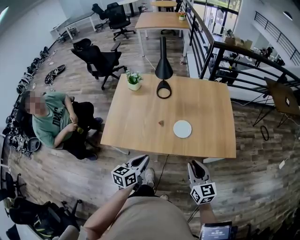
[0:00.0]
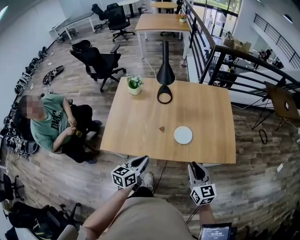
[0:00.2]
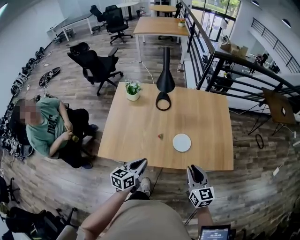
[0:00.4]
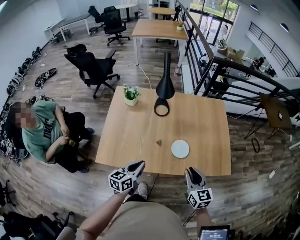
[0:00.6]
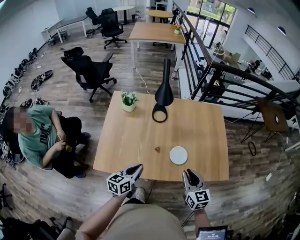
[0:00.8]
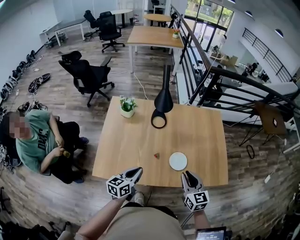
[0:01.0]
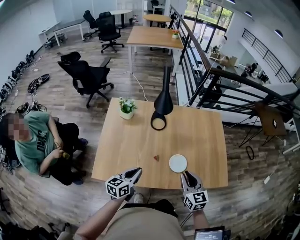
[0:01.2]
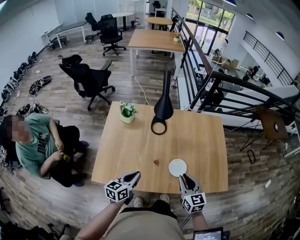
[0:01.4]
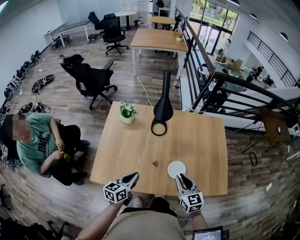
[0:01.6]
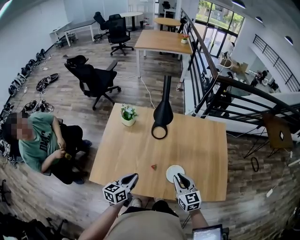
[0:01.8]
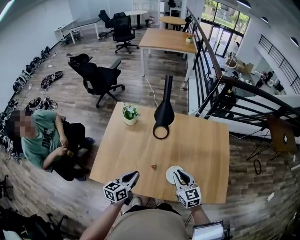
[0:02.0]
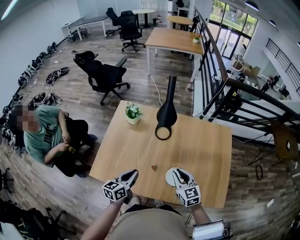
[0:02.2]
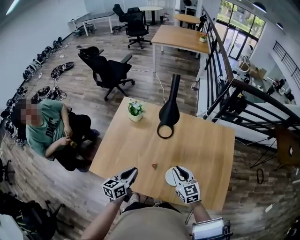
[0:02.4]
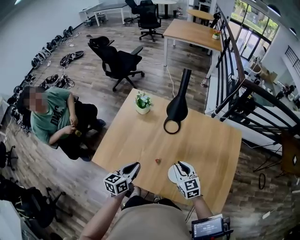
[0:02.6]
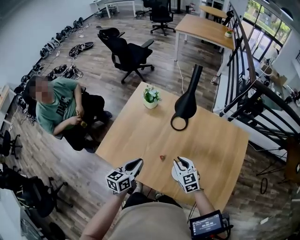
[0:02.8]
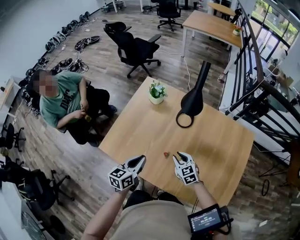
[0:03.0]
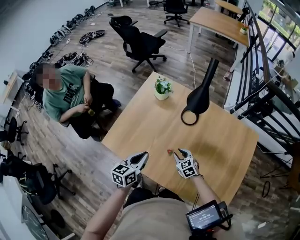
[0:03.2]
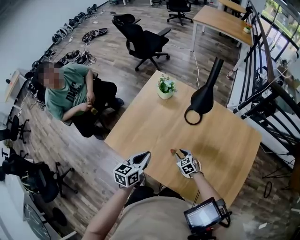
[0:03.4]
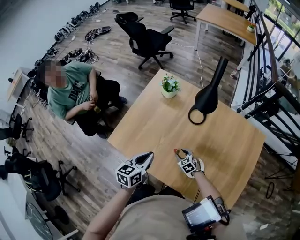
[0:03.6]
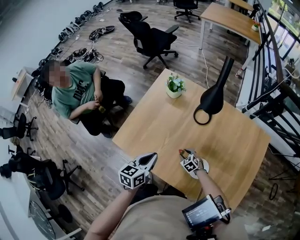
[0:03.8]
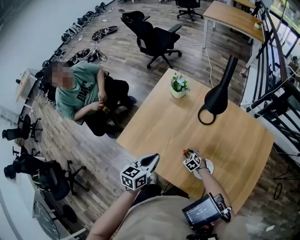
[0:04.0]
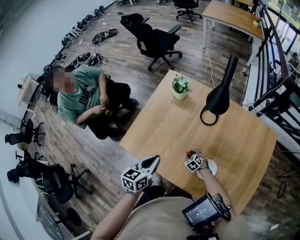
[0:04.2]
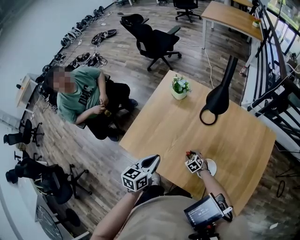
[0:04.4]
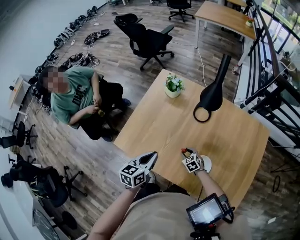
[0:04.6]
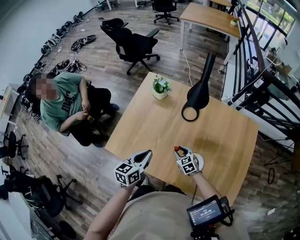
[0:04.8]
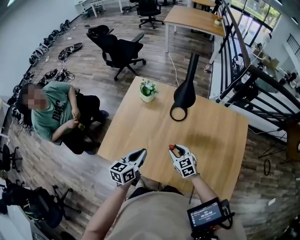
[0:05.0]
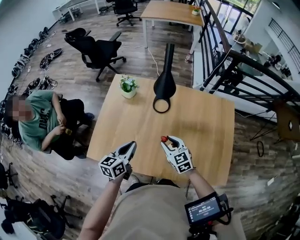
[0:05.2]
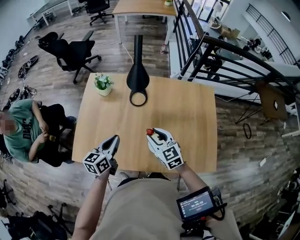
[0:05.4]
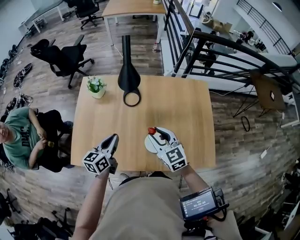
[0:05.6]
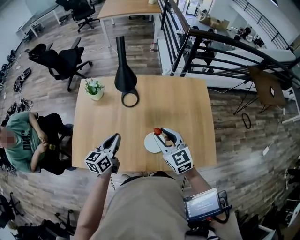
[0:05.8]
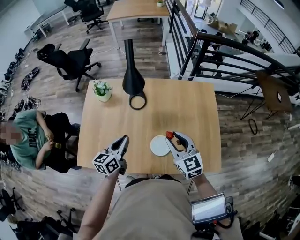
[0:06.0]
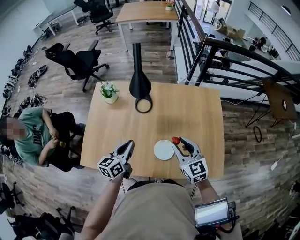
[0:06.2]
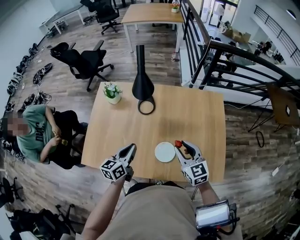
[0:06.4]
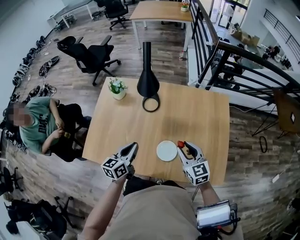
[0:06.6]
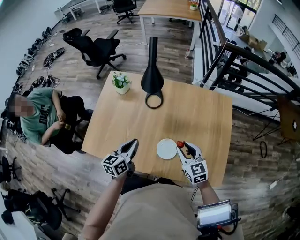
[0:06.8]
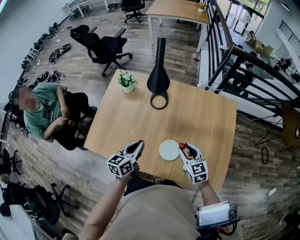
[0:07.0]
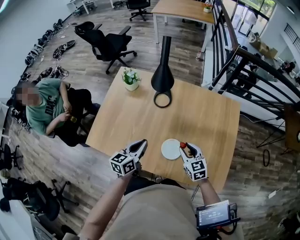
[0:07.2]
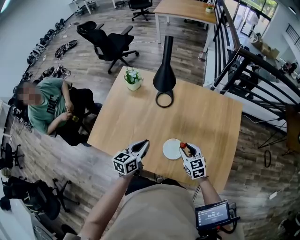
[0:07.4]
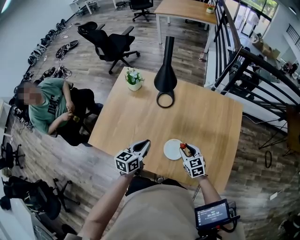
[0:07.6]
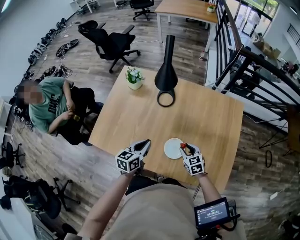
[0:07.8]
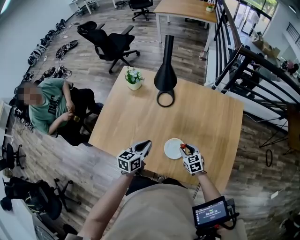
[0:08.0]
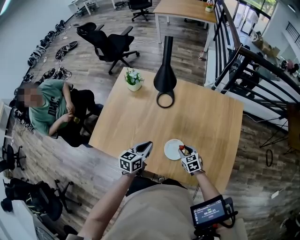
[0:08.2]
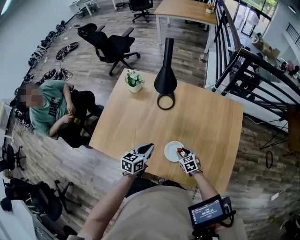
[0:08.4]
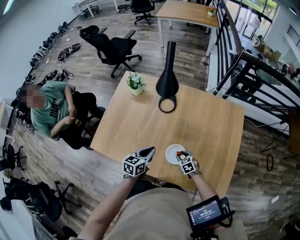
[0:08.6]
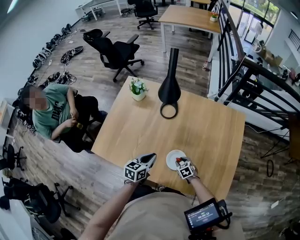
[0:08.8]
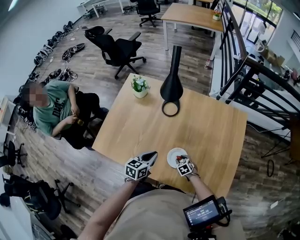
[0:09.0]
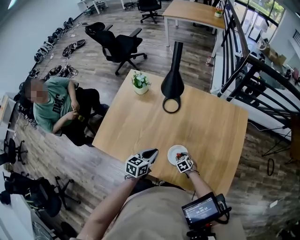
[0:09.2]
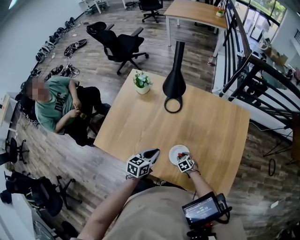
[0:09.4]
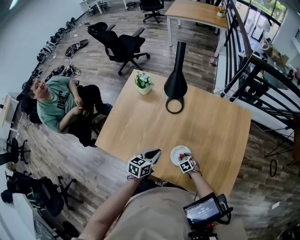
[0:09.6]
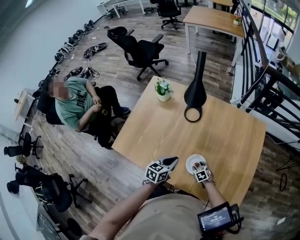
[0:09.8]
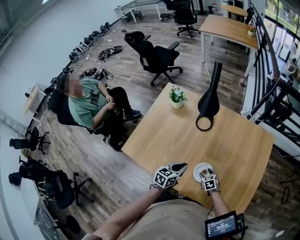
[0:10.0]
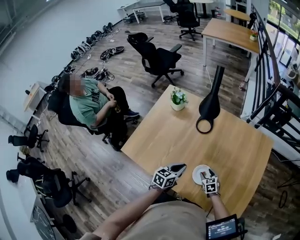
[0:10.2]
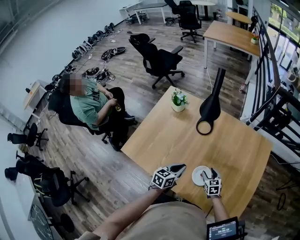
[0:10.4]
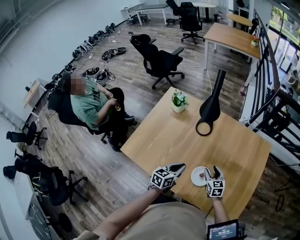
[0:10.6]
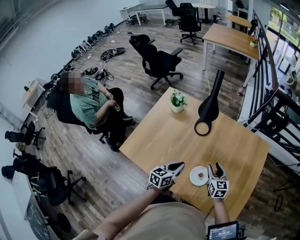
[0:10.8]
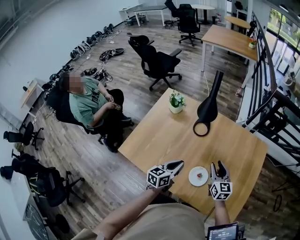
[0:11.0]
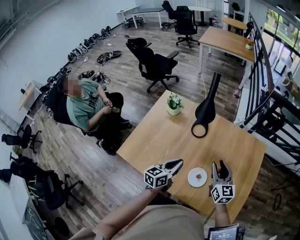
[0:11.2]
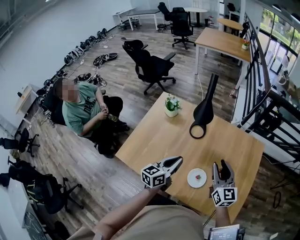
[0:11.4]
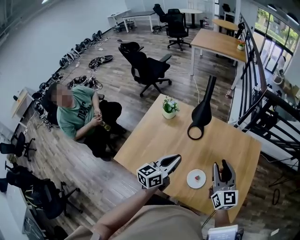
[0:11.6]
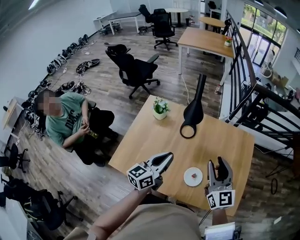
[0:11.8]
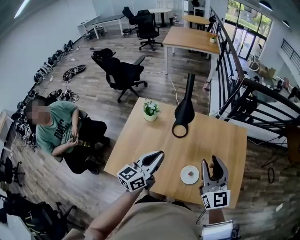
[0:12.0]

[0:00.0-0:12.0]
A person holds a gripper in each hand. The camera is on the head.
0:00.0 to 0:01.6: Both grippers move forward and to the left, about 25 cm.
0:01.6 to 0:03.0: The left gripper changes its angle by about 20 degrees. Meanwhile the right gripper goes roughly 15 cm downward, and swivels roughly 40 degrees.
0:03.0 to 0:04.4: The right gripper moves downward, roughly 20 cm, and rotates roughly 30 degrees.
0:04.4 to 0:06.0: The left gripper shifts by some 15 cm, and rotates roughly 20 degrees; the right gripper shifts about 40 cm upward, and points its fingers approximately 40 degrees further upward.
0:06.0 to 0:07.6: The right gripper is displaced downward by approximately 20 cm, and swivels some 20 degrees. The left gripper shifts about 5 cm downward.
0:07.6 to 0:09.0: The left gripper ends up approximately 5 cm from where it was. Meanwhile the right gripper heads downward, covering some 20 cm, and rotates approximately 30 degrees.
0:09.0 to 0:10.4: The right gripper moves upward, approximately 10 cm, turns by approximately 20 degrees, and opens up.
0:10.4 to 0:12.0: The right gripper travels upward by approximately 40 cm, and angles its fingers upward, by some 50 degrees, while the left gripper moves upward, some 25 cm, and turns by about 30 degrees.

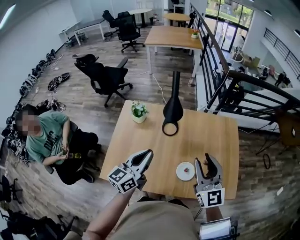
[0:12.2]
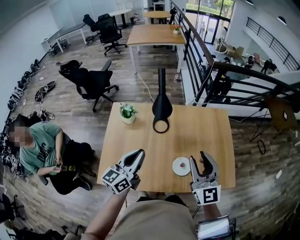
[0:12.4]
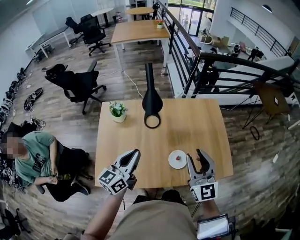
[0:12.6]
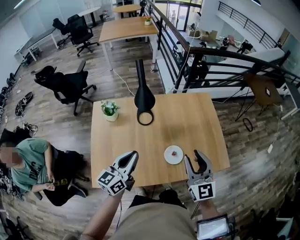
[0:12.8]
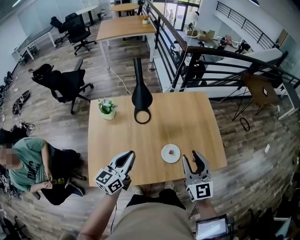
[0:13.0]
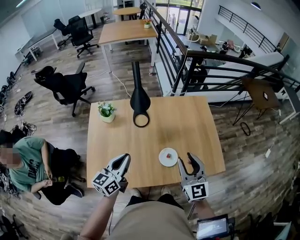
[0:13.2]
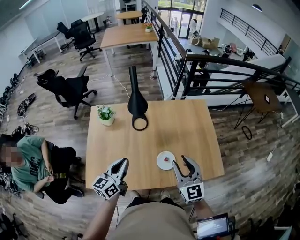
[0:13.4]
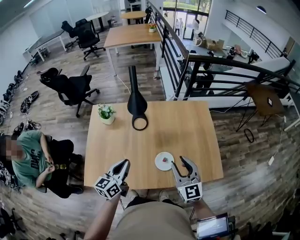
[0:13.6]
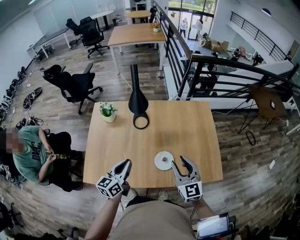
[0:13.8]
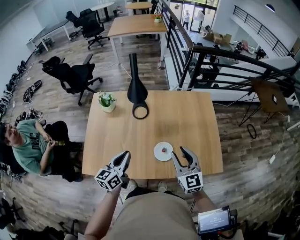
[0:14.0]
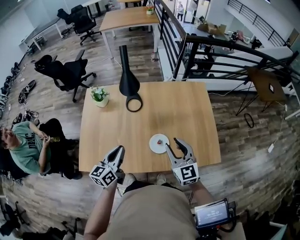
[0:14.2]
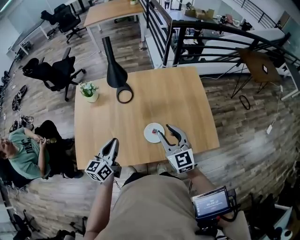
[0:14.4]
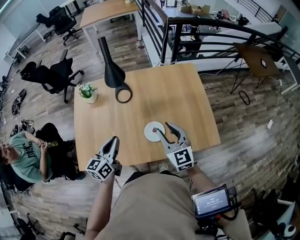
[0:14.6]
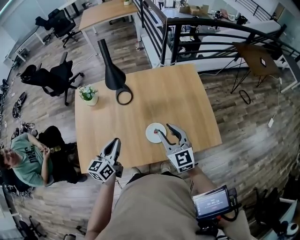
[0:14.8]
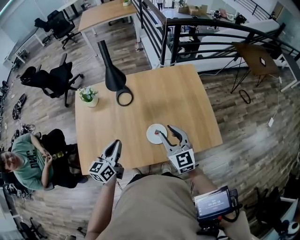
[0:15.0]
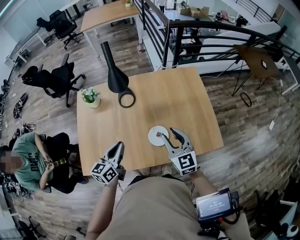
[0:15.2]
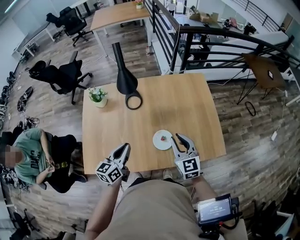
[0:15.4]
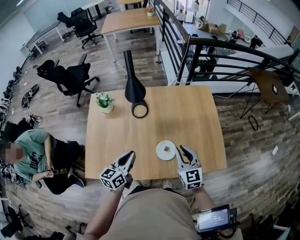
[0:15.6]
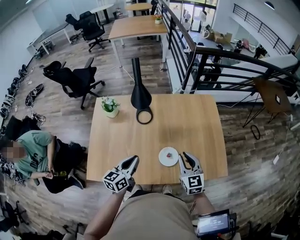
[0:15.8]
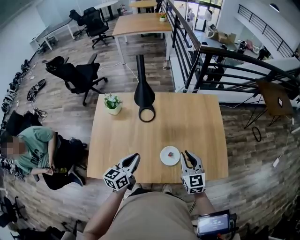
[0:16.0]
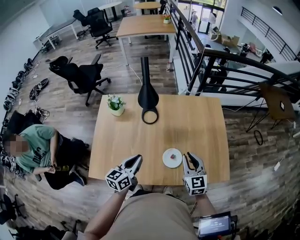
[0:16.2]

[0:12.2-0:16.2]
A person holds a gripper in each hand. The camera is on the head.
0:12.2 to 0:13.6: The left gripper moves downward, approximately 10 cm. The right gripper heads downward and to the right, covering some 10 cm.
0:13.6 to 0:14.8: The right gripper travels downward by approximately 5 cm.
0:14.8 to 0:16.2: The right gripper closes up.

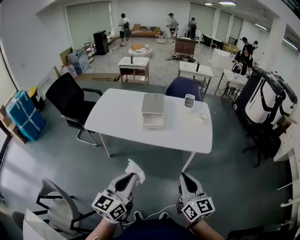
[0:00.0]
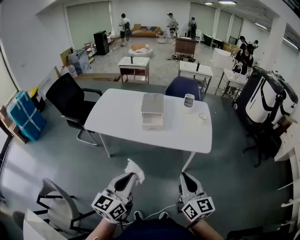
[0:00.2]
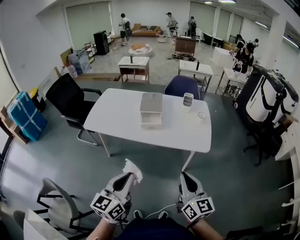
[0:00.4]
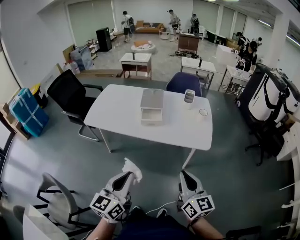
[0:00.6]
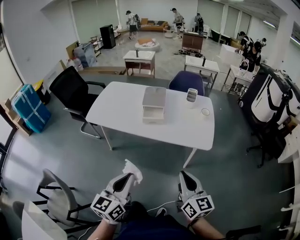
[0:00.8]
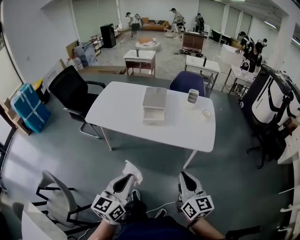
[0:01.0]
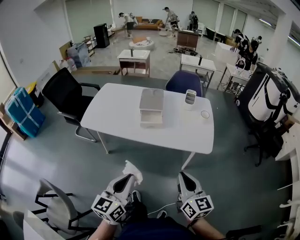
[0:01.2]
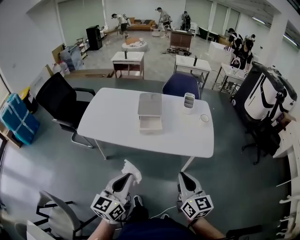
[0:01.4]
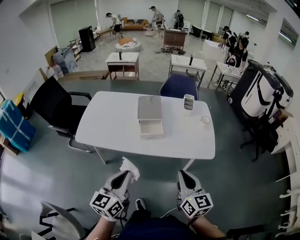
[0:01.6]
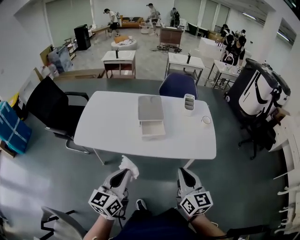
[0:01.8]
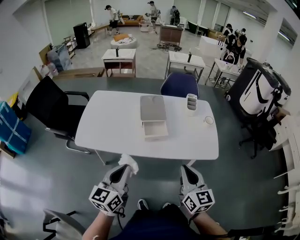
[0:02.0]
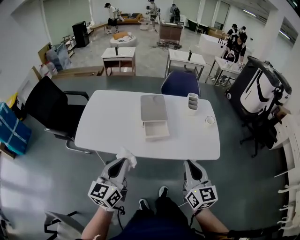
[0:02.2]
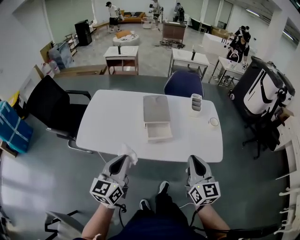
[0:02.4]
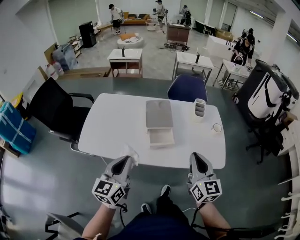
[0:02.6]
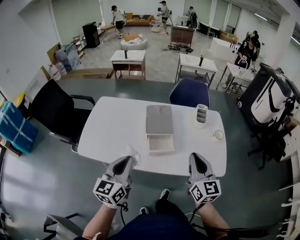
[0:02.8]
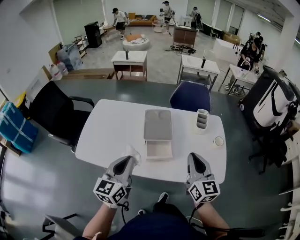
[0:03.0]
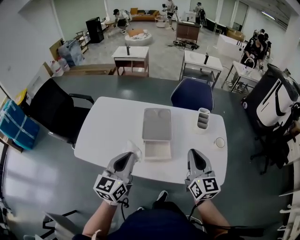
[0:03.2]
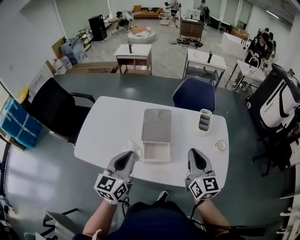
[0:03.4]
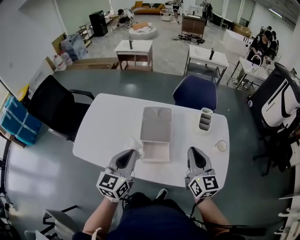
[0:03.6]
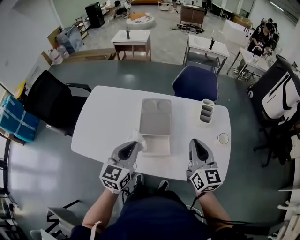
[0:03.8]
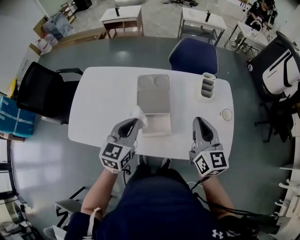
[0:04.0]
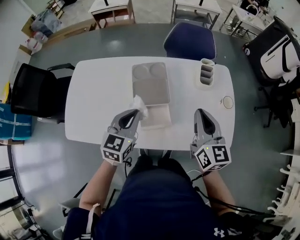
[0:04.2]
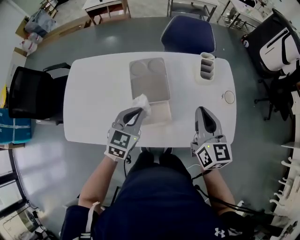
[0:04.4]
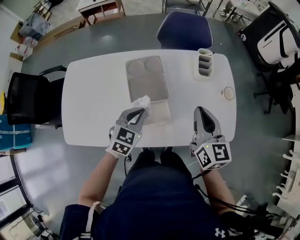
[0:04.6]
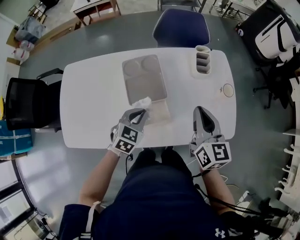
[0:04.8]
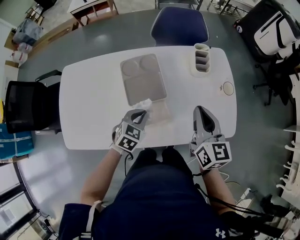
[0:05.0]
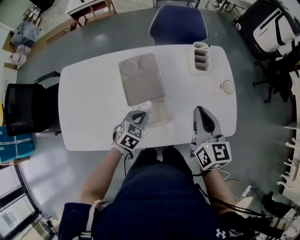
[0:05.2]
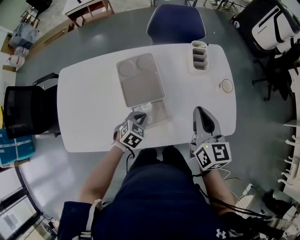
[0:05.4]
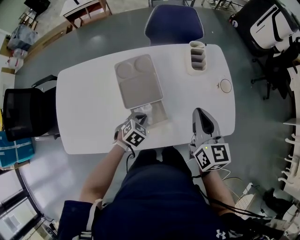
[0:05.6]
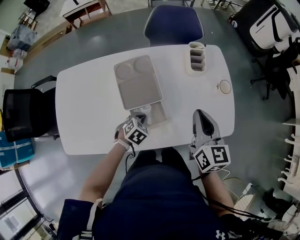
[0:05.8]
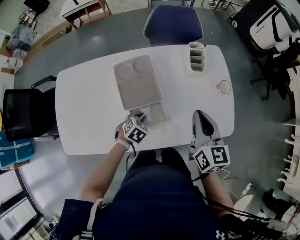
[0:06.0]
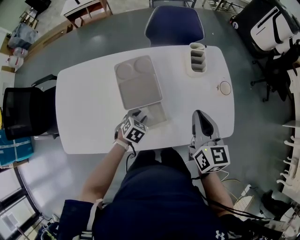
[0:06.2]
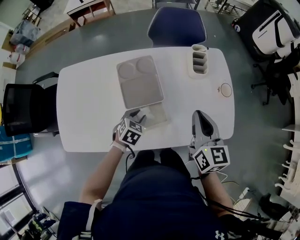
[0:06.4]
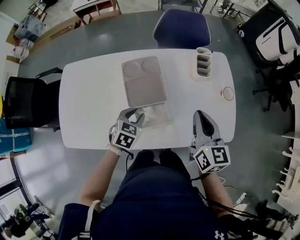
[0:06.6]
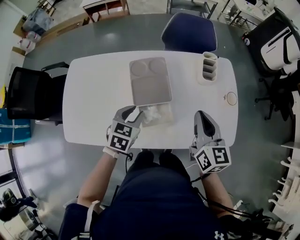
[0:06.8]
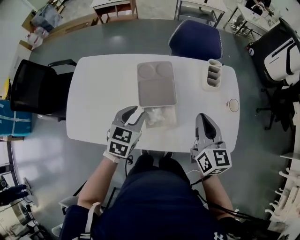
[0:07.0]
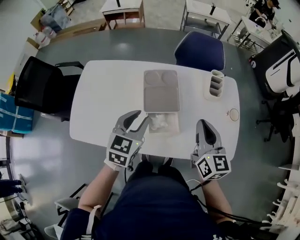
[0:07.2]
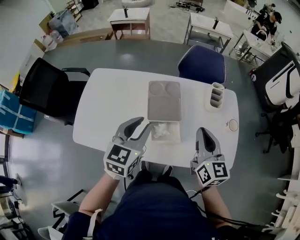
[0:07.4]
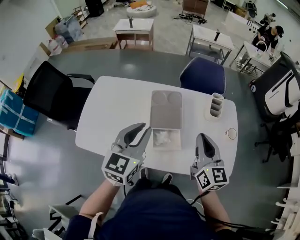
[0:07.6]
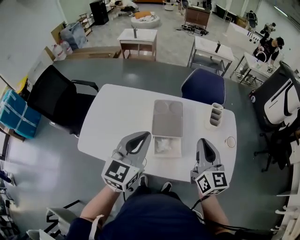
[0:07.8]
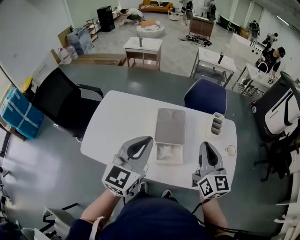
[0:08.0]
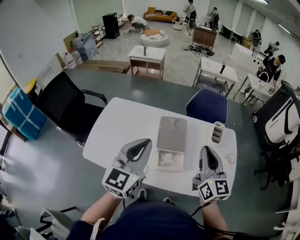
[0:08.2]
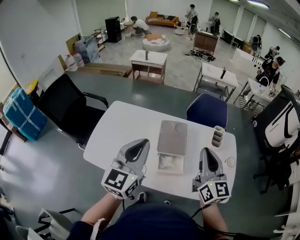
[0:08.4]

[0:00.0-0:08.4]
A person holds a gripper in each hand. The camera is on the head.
0:00.0 to 0:01.4: Both grippers travel together forward, roughly 10 cm.
0:01.4 to 0:02.8: The right gripper is displaced forward by approximately 25 cm. Meanwhile the left gripper is displaced forward and to the left by some 25 cm.
0:02.8 to 0:04.2: The left gripper shifts roughly 25 cm forward and downward, and swivels approximately 20 degrees, while the right gripper goes approximately 15 cm forward.
0:04.2 to 0:05.6: The left gripper travels downward by approximately 20 cm, and tilts its fingers roughly 40 degrees downward. Meanwhile the right gripper shifts by roughly 5 cm.
0:05.6 to 0:07.0: The left gripper moves upward and to the left, about 20 cm, changes its angle by some 30 degrees, and opens.
0:07.0 to 0:08.4: The left gripper heads upward, covering approximately 25 cm, tips its fingers upward by roughly 40 degrees, and closes its fingers. Meanwhile the right gripper is displaced upward and to the left by roughly 15 cm, and rotates about 20 degrees.
